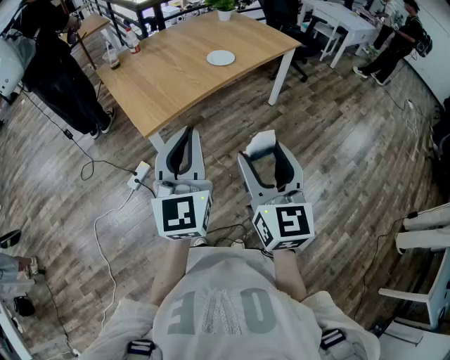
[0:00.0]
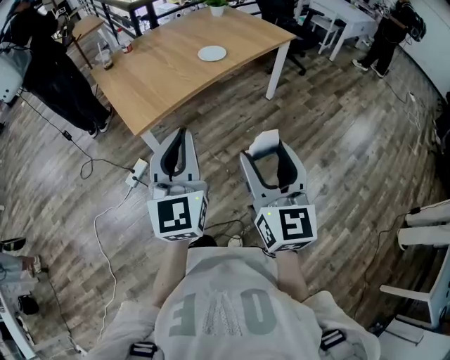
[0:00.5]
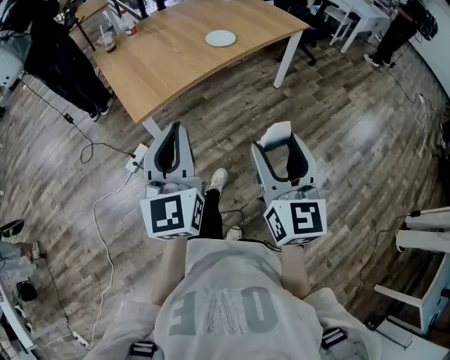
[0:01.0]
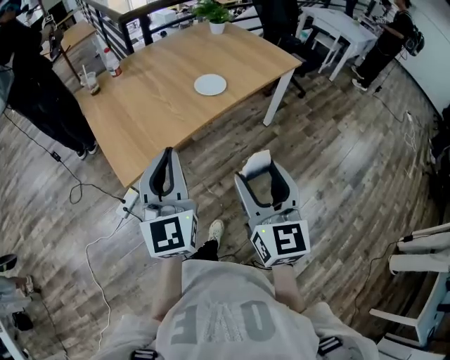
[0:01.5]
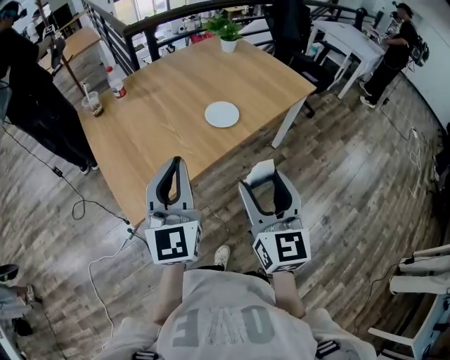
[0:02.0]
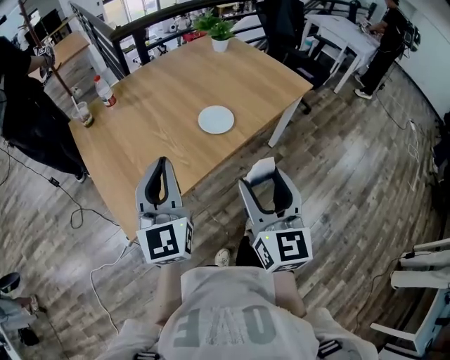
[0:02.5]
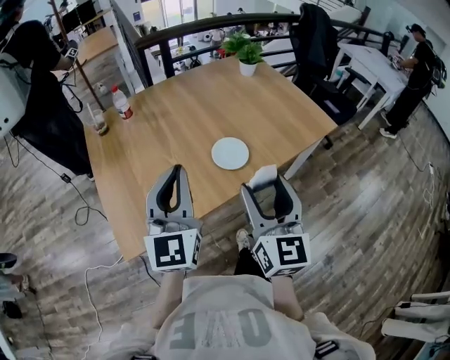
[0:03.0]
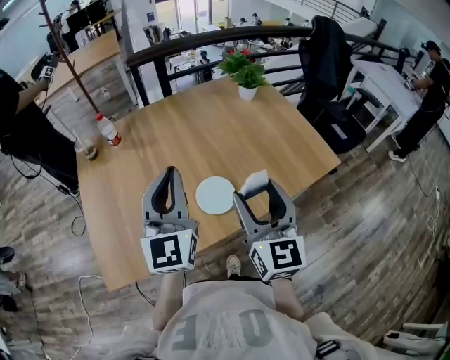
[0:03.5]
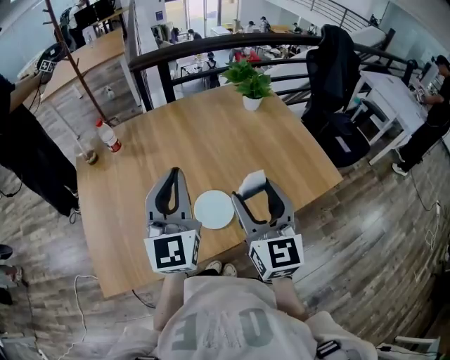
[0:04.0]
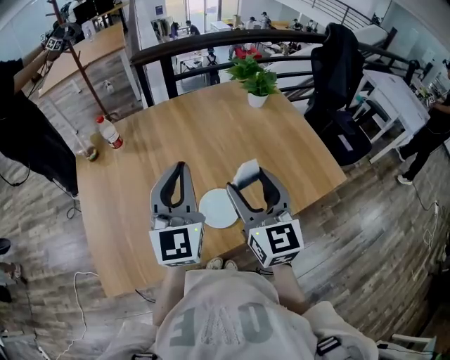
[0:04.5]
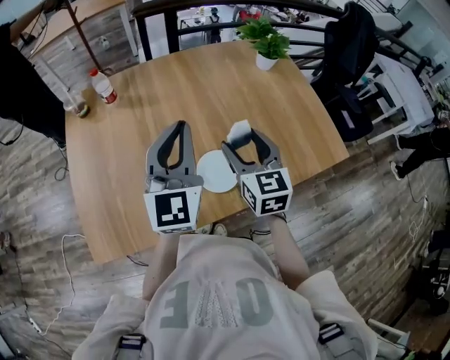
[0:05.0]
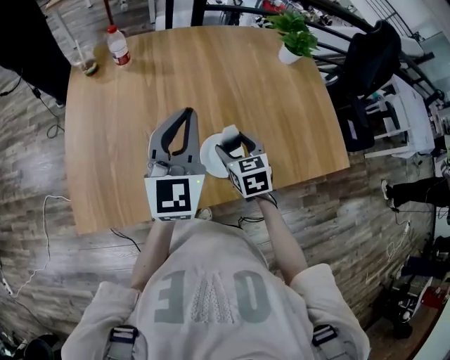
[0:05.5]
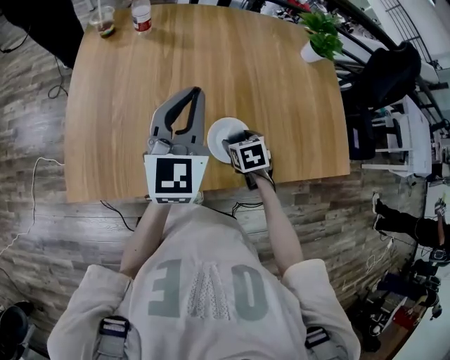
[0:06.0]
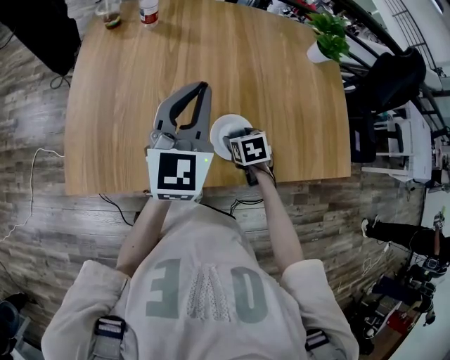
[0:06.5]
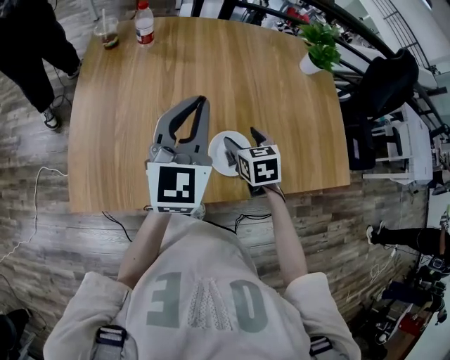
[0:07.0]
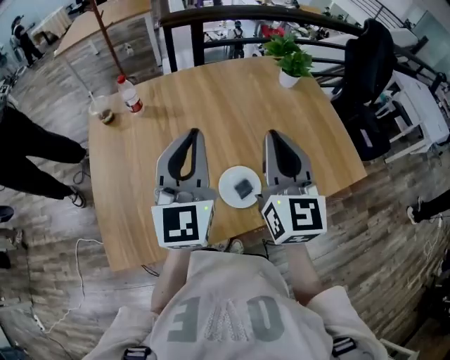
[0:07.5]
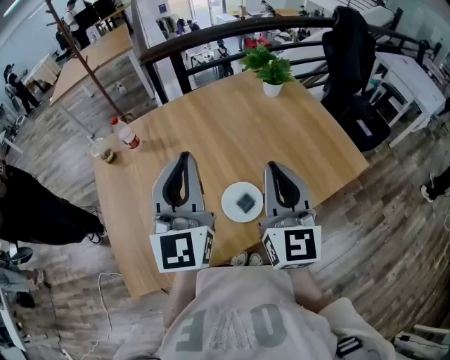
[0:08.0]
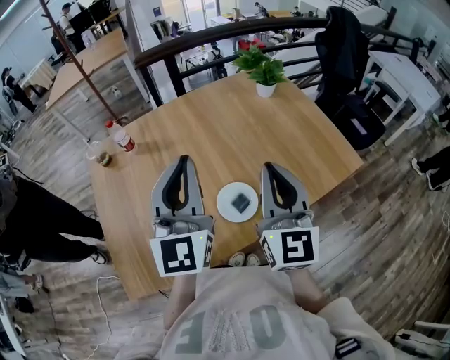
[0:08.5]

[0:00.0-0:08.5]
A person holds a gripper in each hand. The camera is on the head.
0.0 to 2.0 s: The grippers both shift forward by approximately 30 cm.
2.0 to 4.0 s: The two grippers go roughly 35 cm forward.
4.0 to 6.5 s: The right gripper is displaced downward by roughly 30 cm, and tilts its fingers about 60 degrees downward, while the left gripper travels downward and to the left by about 10 cm.
6.5 to 8.5 s: The left gripper heads upward and to the right, covering about 15 cm, while the right gripper moves upward, approximately 35 cm, tips its fingers upward by about 70 degrees, and closes its fingers.

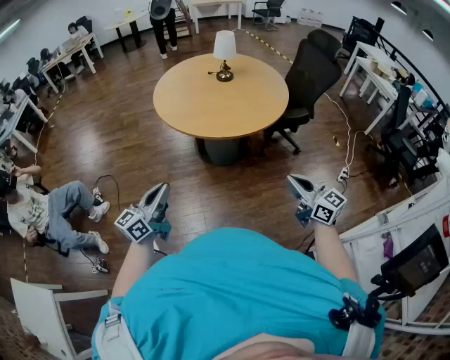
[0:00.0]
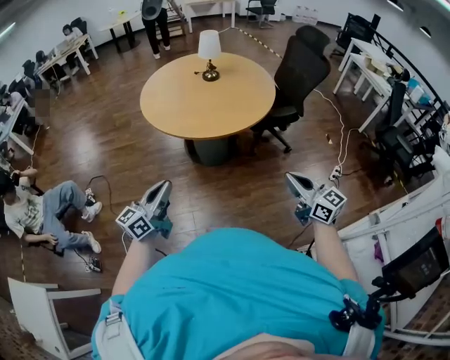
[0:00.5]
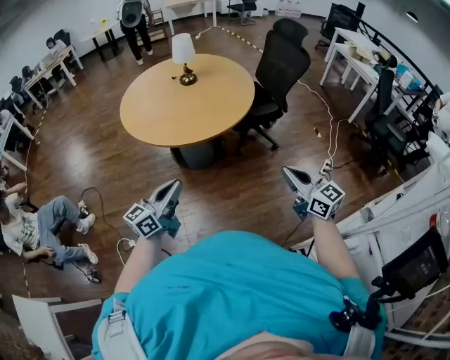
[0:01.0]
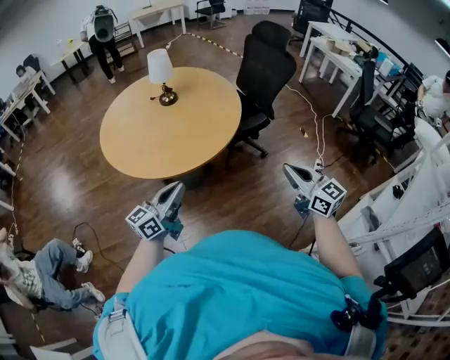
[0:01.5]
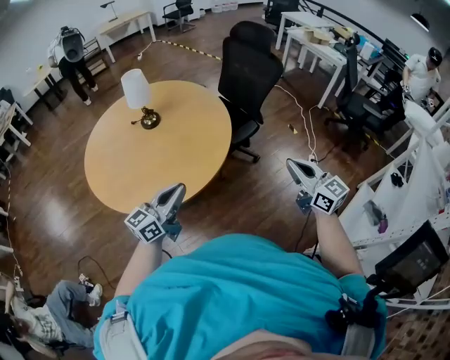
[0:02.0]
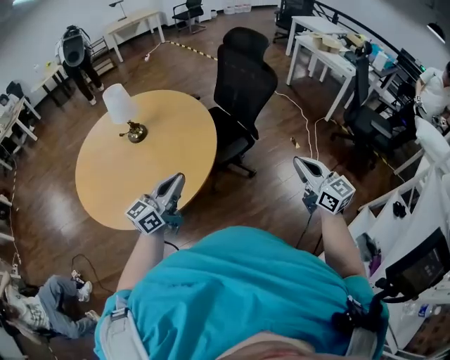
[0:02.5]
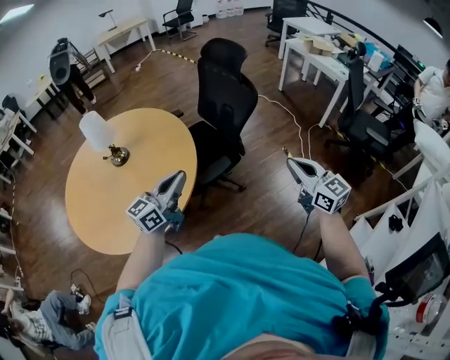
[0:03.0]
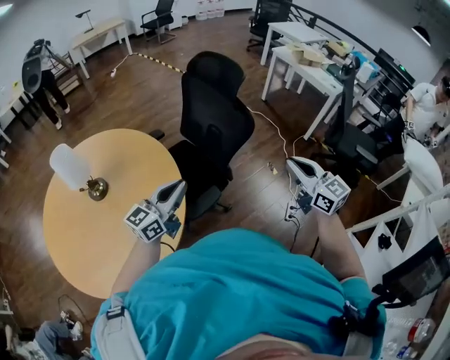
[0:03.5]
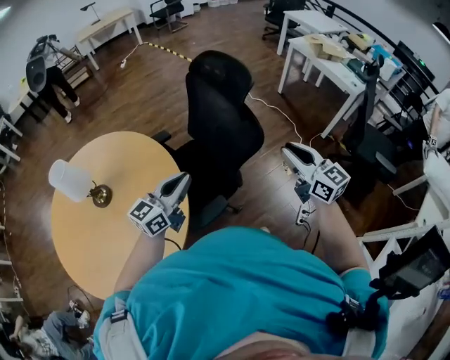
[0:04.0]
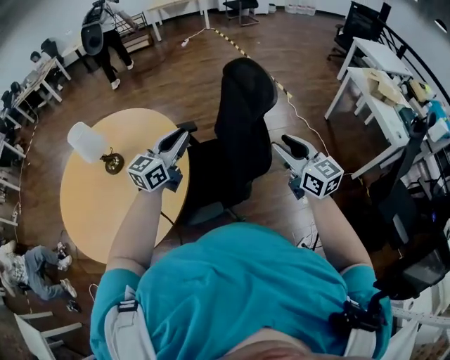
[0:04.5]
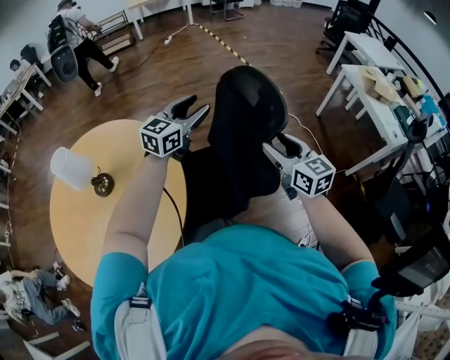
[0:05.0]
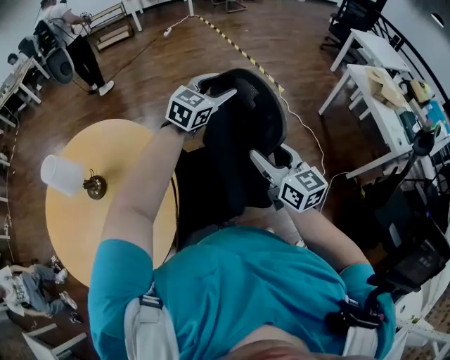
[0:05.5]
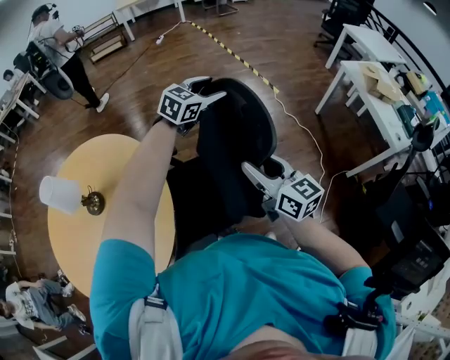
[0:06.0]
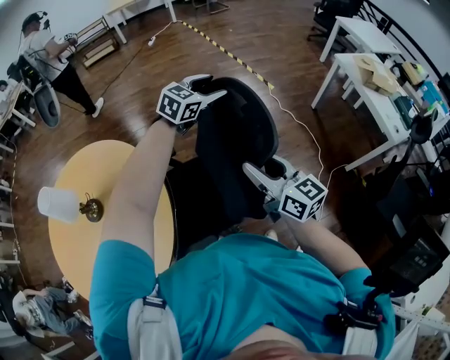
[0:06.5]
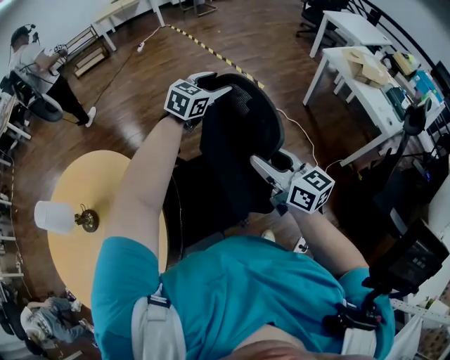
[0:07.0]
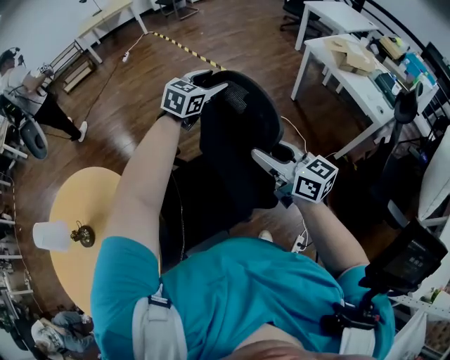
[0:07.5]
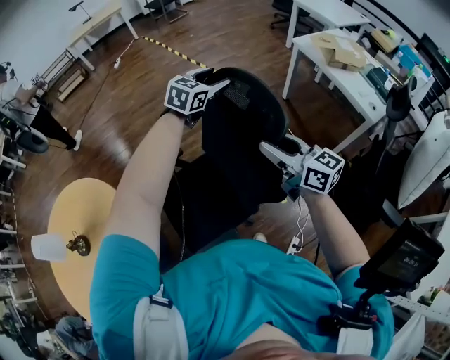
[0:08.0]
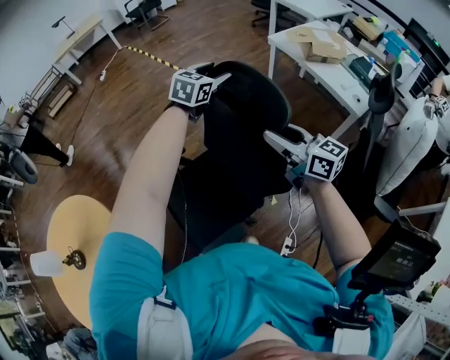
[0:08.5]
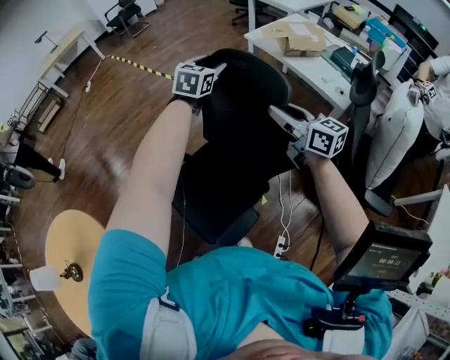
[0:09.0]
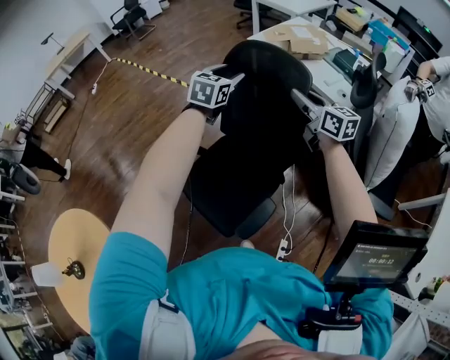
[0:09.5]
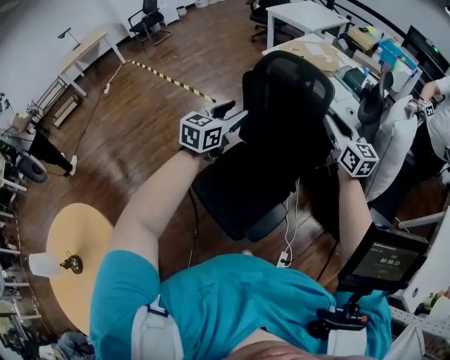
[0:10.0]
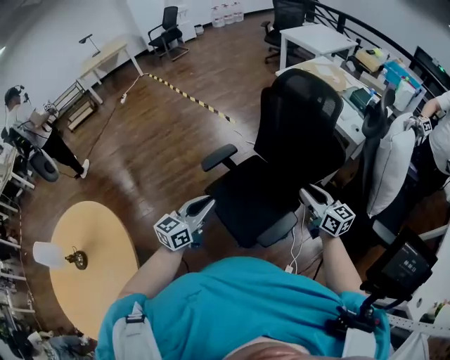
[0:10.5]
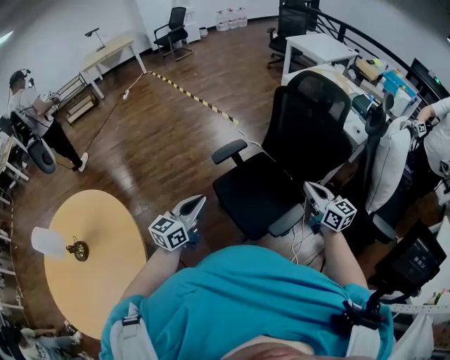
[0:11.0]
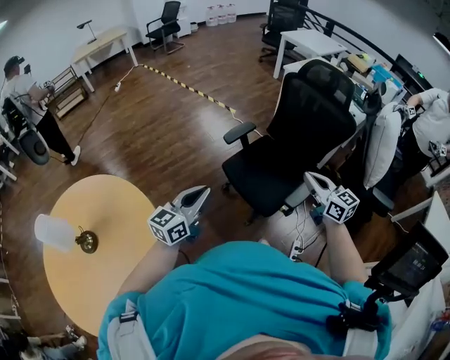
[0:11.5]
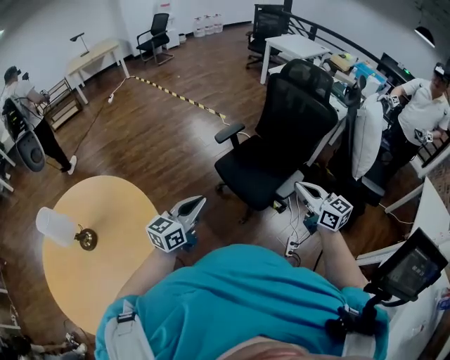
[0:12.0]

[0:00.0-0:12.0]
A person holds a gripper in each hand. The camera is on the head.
0.0 to 2.0 s: The right gripper moves about 30 cm, and rotates roughly 30 degrees. Meanwhile the left gripper moves about 40 cm, and rotates about 30 degrees.
2.0 to 4.0 s: The pair of grippers is taken forward and to the right, about 60 cm. The right gripper opens.
4.0 to 6.0 s: The left gripper shifts some 50 cm forward, tips its fingers downward by approximately 30 degrees, and opens its fingers. The right gripper moves forward, about 30 cm, and opens its fingers.
6.0 to 8.0 s: The left gripper shifts some 30 cm to the right and forward. Meanwhile the right gripper shifts some 30 cm to the right.
8.0 to 10.0 s: The right gripper is displaced to the right by about 35 cm, and changes its angle by about 40 degrees, while the left gripper goes roughly 20 cm to the right.
10.0 to 12.0 s: The two grippers travel together, backward and to the left, some 70 cm. The right gripper changes its angle by approximately 20 degrees, and closes; the left gripper turns by roughly 20 degrees, and closes.

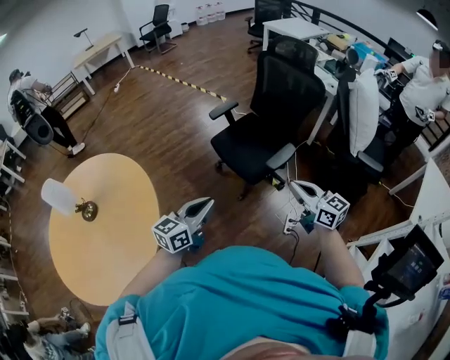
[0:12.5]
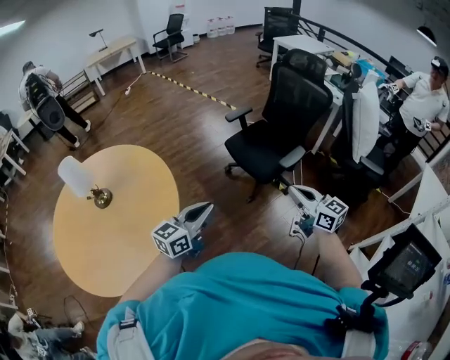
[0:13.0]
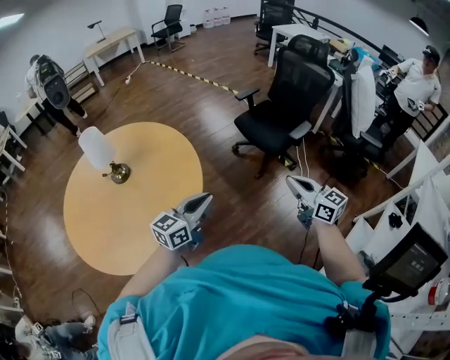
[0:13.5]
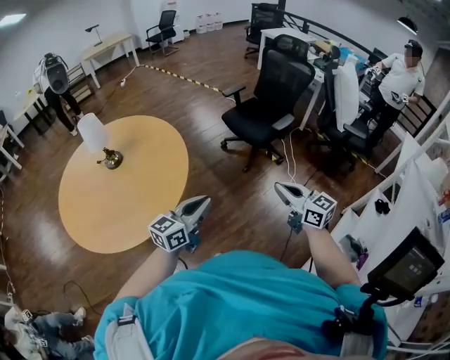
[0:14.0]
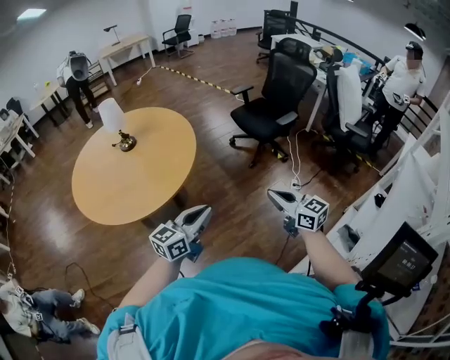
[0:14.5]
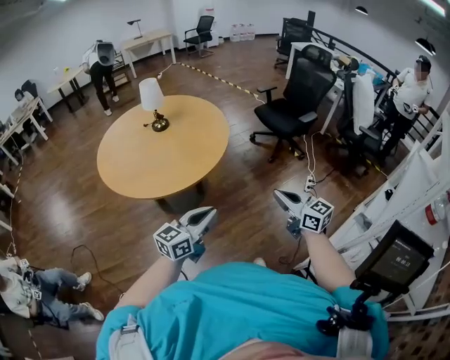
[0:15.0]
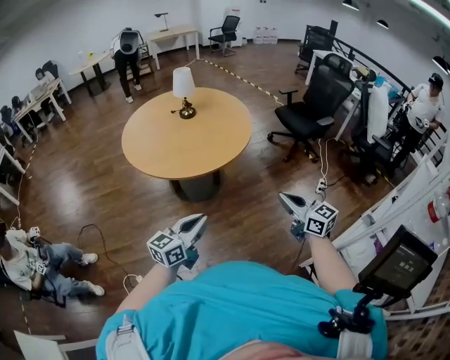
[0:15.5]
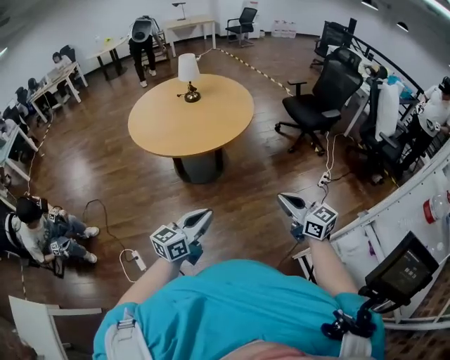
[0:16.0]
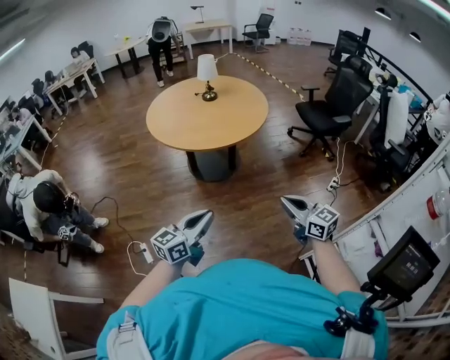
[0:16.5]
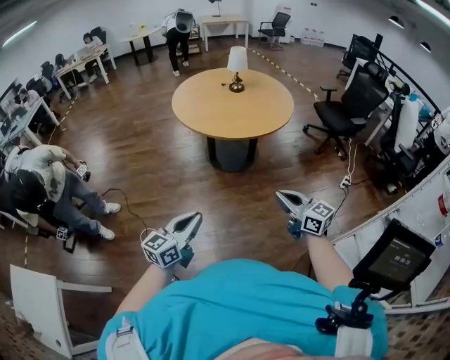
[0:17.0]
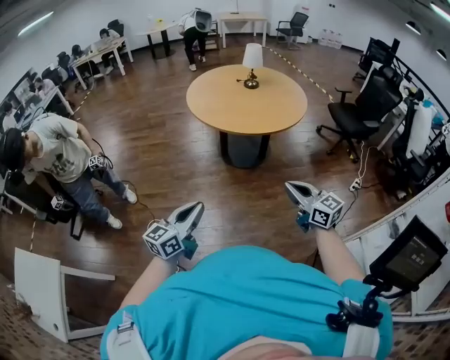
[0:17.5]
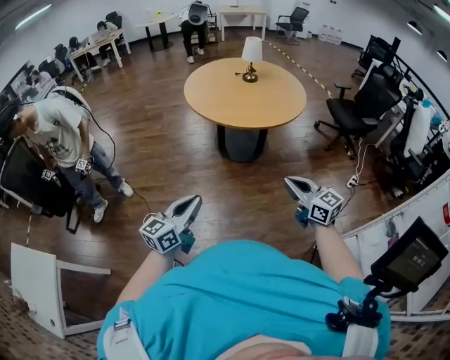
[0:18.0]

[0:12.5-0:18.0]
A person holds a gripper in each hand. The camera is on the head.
12.5 to 14.5 s: The two grippers travel together, backward, about 60 cm.
14.5 to 16.0 s: The two grippers go approximately 30 cm backward and to the left.
16.0 to 18.0 s: The left gripper shifts some 25 cm to the left and backward, while the right gripper travels to the left by about 20 cm.

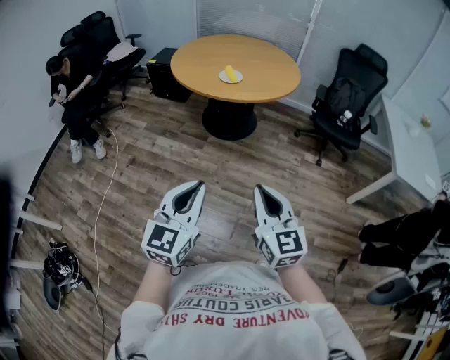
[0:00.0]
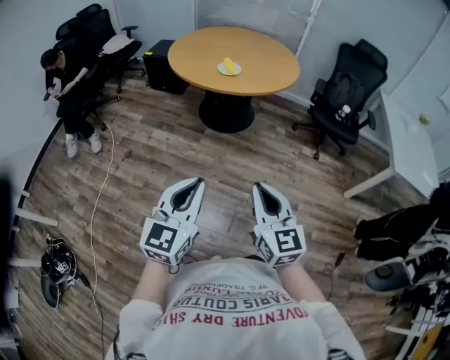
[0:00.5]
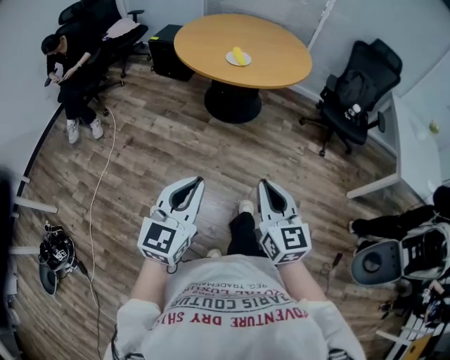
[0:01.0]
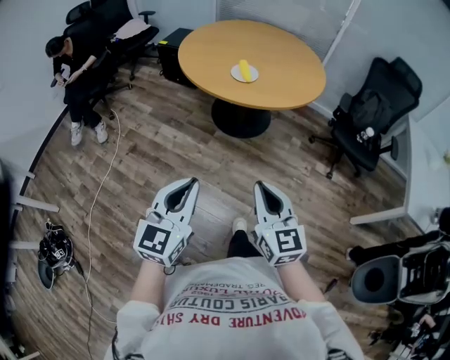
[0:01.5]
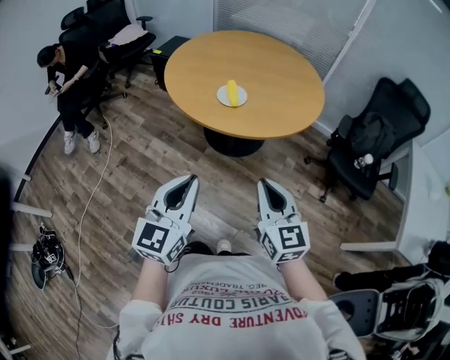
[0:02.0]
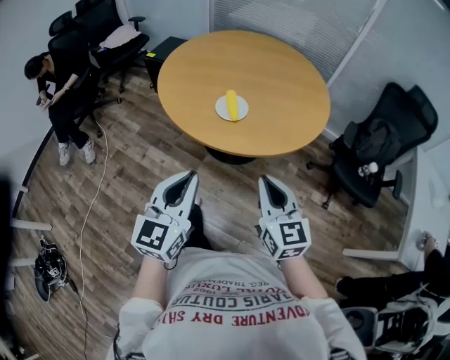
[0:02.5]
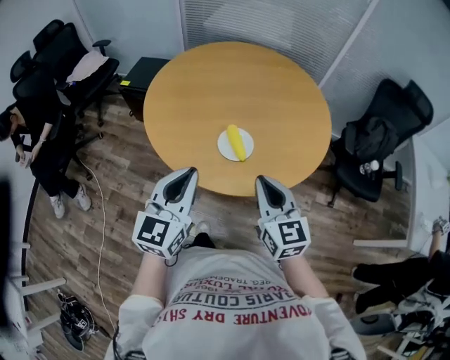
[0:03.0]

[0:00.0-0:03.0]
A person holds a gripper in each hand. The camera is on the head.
0.0 to 1.5 s: The two grippers go roughly 15 cm forward.
1.5 to 3.0 s: The two grippers travel together, forward, roughly 50 cm.
